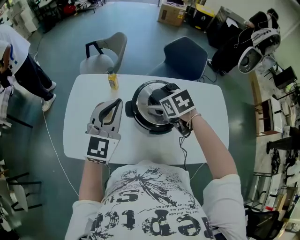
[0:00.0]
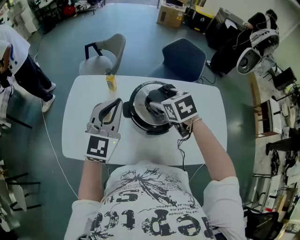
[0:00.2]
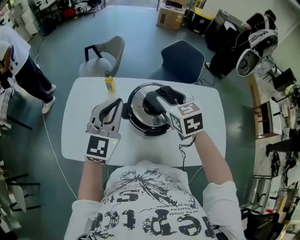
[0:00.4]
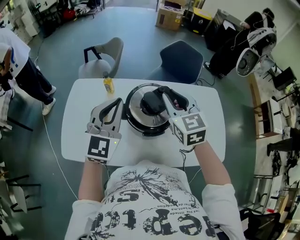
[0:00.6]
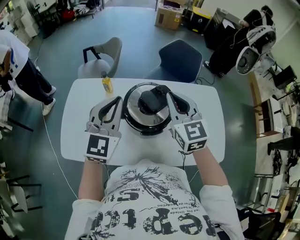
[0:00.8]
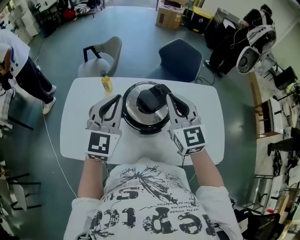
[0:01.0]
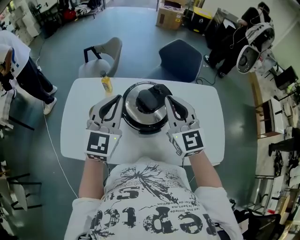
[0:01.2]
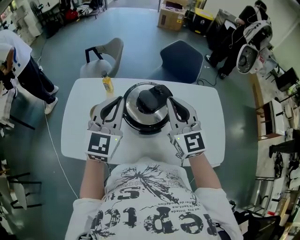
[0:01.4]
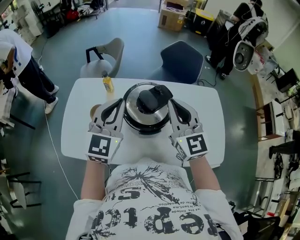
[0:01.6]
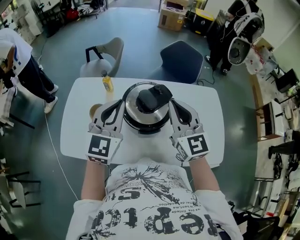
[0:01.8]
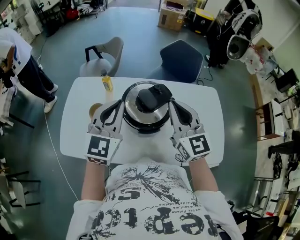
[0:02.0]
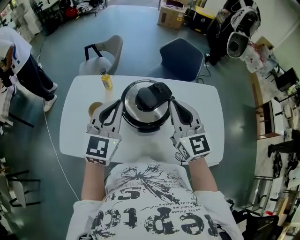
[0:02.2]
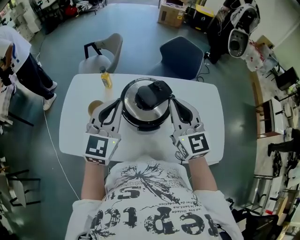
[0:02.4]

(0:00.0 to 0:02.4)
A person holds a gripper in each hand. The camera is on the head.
0:00.0 - 0:01.2: The right gripper goes some 15 cm upward, to the right and backward, tilts its fingers roughly 60 degrees upward, and closes, while the left gripper shifts approximately 5 cm to the right.
0:01.2 - 0:02.4: The grippers make only small movements.

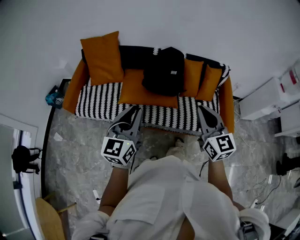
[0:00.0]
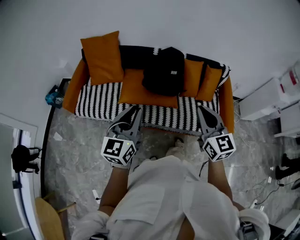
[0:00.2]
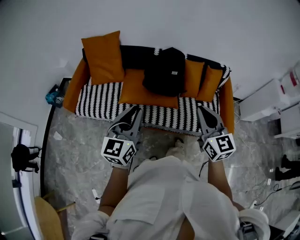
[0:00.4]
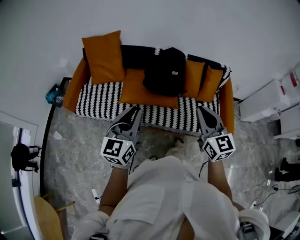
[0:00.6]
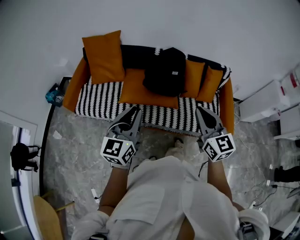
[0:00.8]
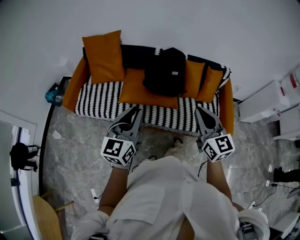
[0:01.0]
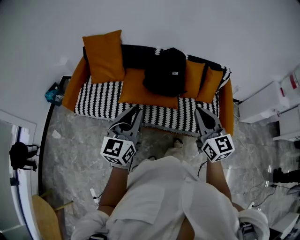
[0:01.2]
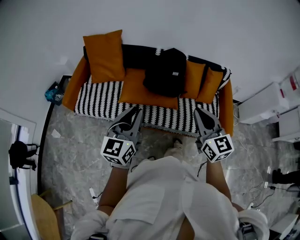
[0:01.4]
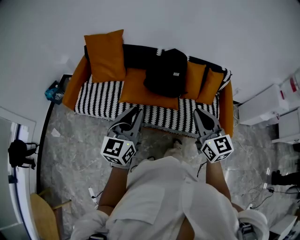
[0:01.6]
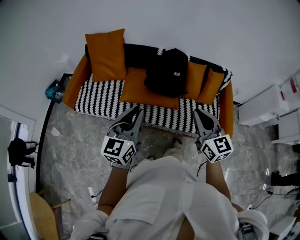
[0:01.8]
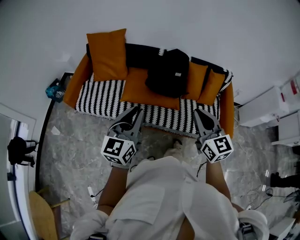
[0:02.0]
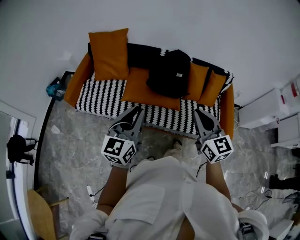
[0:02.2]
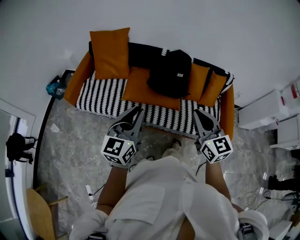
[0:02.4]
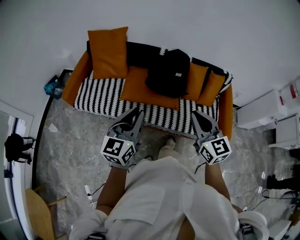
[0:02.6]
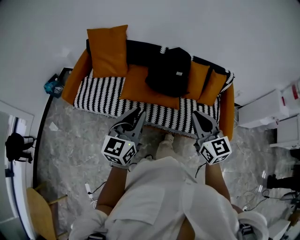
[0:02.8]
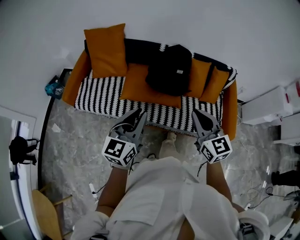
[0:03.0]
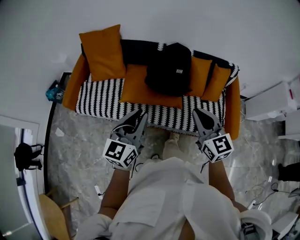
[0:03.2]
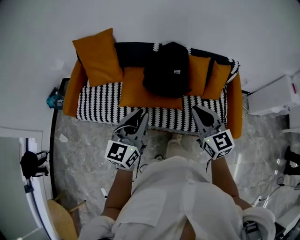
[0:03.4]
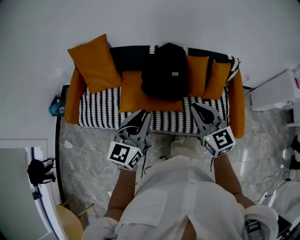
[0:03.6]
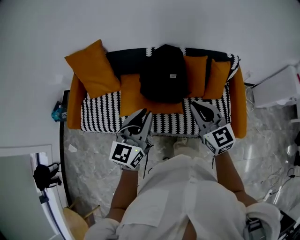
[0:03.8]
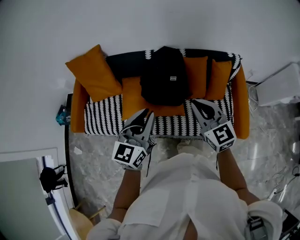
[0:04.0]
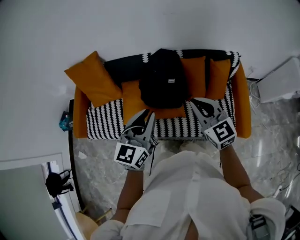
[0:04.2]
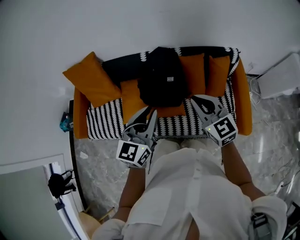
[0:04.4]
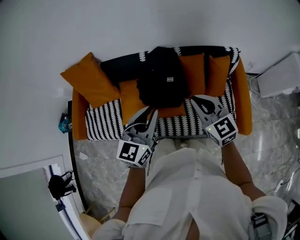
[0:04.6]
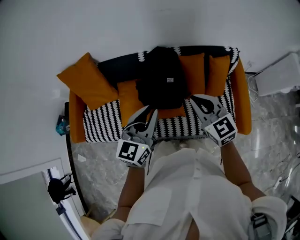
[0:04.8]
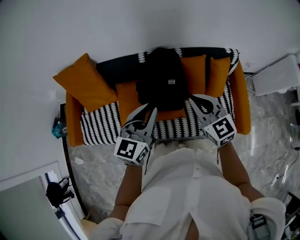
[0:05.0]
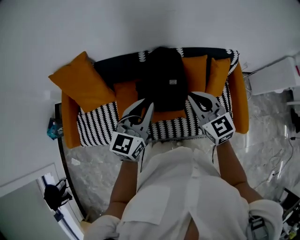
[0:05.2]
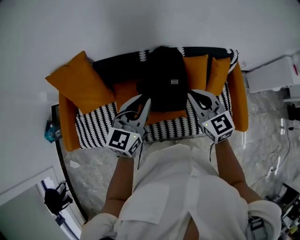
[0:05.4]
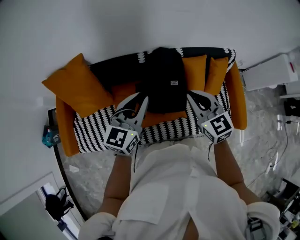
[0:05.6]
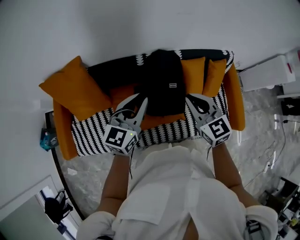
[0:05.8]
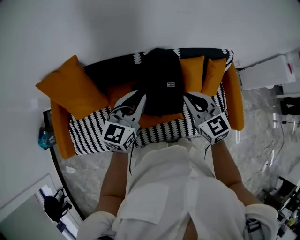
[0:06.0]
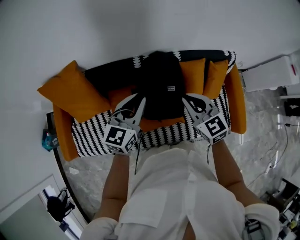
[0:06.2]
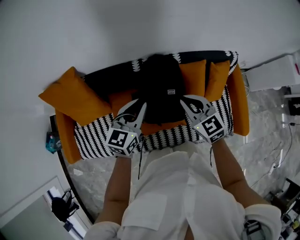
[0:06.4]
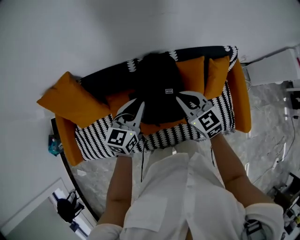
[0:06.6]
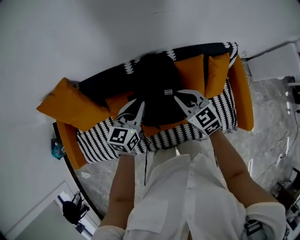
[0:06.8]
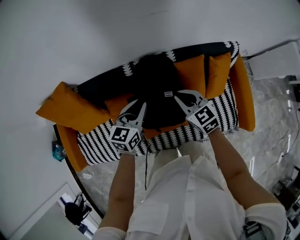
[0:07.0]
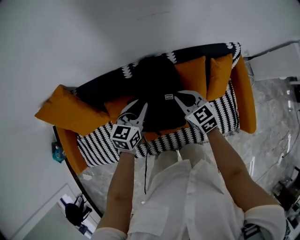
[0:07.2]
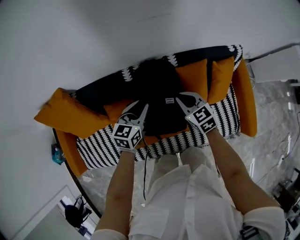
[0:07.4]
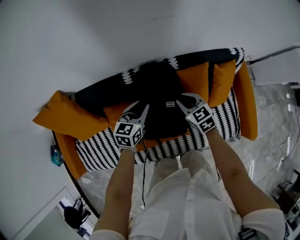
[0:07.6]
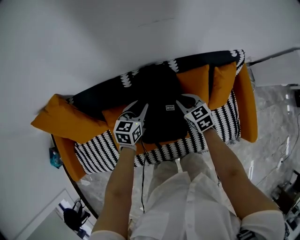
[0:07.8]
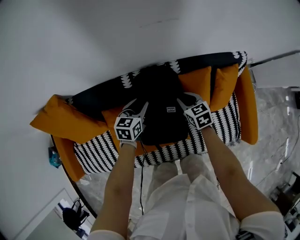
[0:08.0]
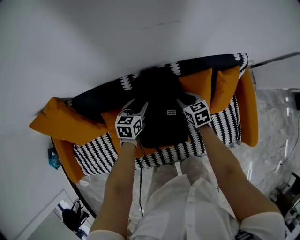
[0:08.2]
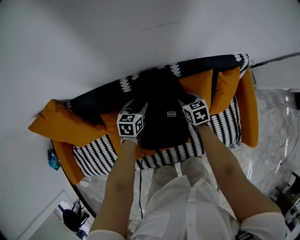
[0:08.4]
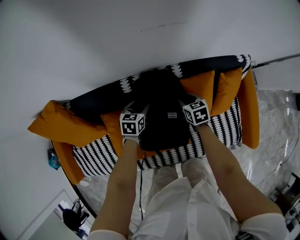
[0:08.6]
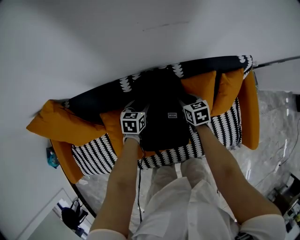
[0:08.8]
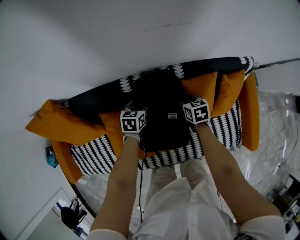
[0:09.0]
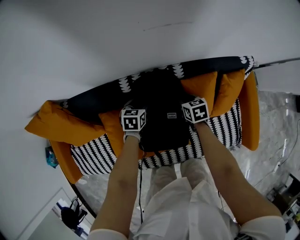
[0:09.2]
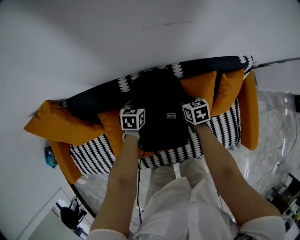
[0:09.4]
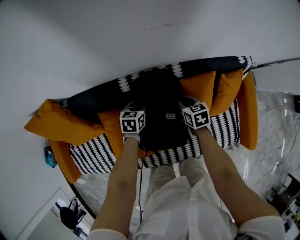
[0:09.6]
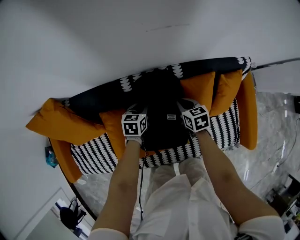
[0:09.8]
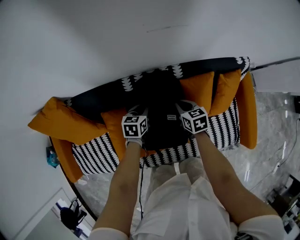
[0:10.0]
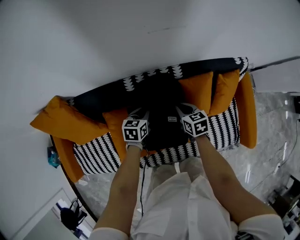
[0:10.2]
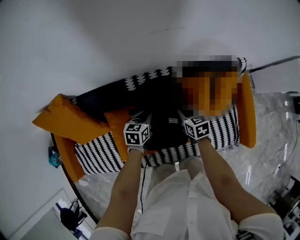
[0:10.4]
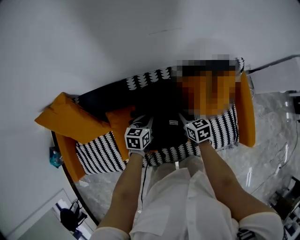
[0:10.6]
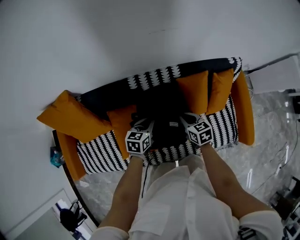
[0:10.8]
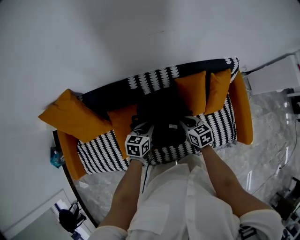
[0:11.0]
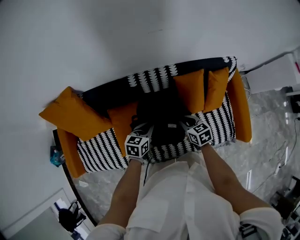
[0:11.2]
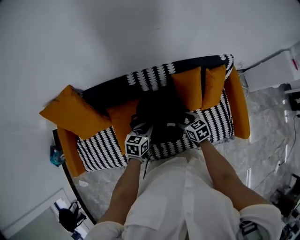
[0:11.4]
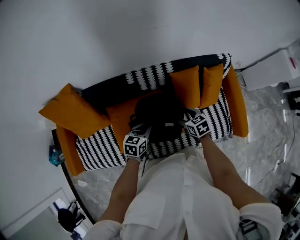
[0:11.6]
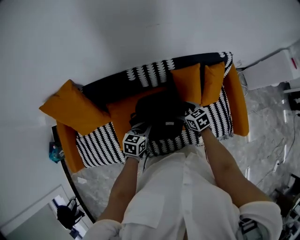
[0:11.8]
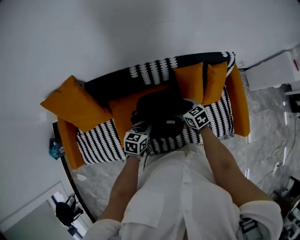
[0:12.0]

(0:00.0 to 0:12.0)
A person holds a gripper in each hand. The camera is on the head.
0:00.0 - 0:01.6: There are only small adjustments of the grippers.
0:01.6 - 0:03.0: The grippers move only a little.
0:03.0 - 0:04.4: Both grippers move forward and to the right, about 25 cm.
0:04.4 - 0:06.0: The right gripper moves to the left and forward, roughly 15 cm, while the left gripper goes roughly 20 cm forward and to the left.
0:06.0 - 0:07.6: Both grippers travel together downward and forward, roughly 25 cm. The left gripper changes its angle by about 20 degrees.
0:07.6 - 0:09.0: Both grippers move downward and forward, some 15 cm. The right gripper changes its angle by roughly 30 degrees. The left gripper opens its fingers.
0:09.0 - 0:10.4: Both grippers move upward and backward, roughly 10 cm. The left gripper closes.
0:10.4 - 0:12.0: The left gripper goes some 15 cm backward and upward; the right gripper goes some 10 cm backward and upward, and opens.

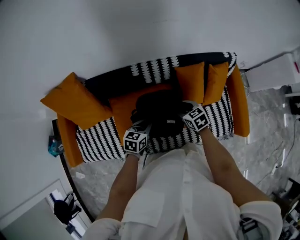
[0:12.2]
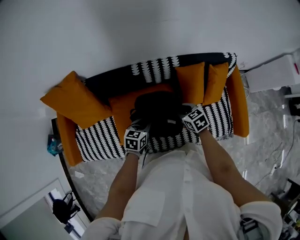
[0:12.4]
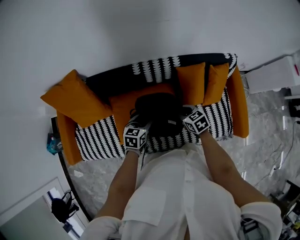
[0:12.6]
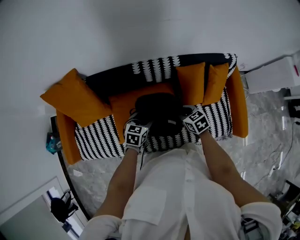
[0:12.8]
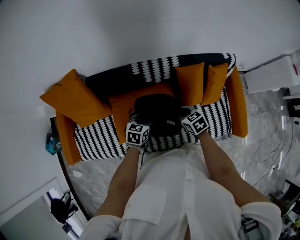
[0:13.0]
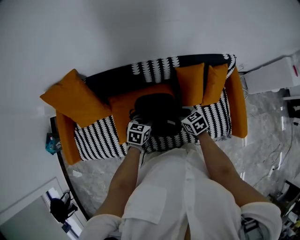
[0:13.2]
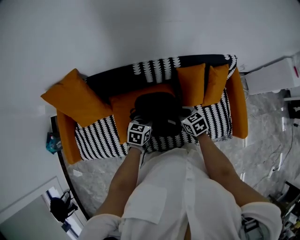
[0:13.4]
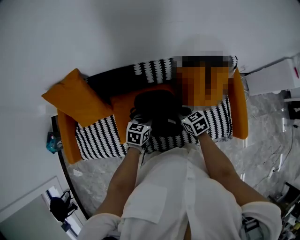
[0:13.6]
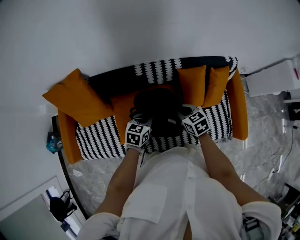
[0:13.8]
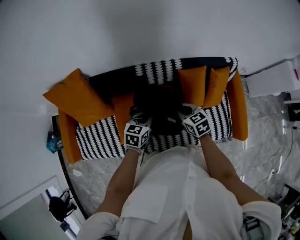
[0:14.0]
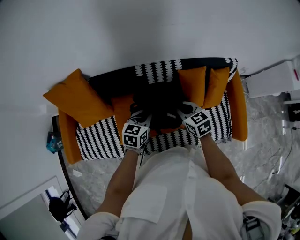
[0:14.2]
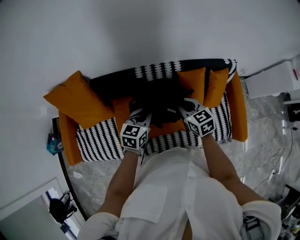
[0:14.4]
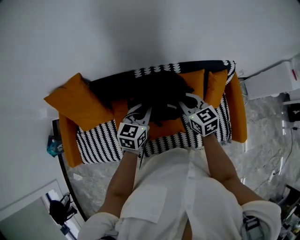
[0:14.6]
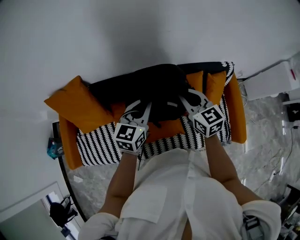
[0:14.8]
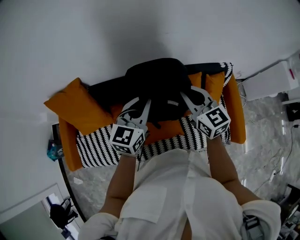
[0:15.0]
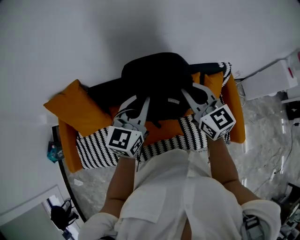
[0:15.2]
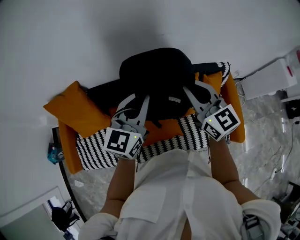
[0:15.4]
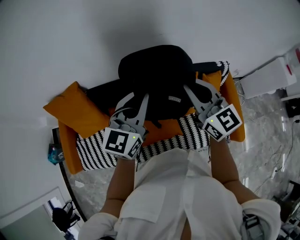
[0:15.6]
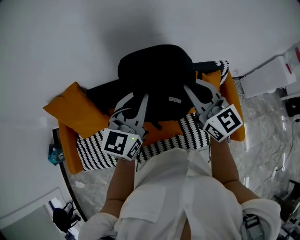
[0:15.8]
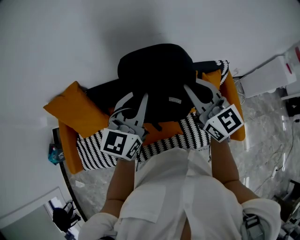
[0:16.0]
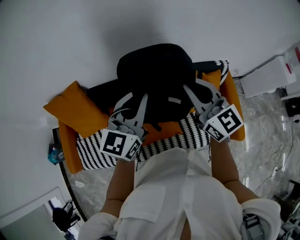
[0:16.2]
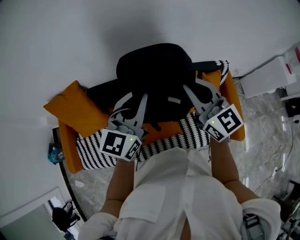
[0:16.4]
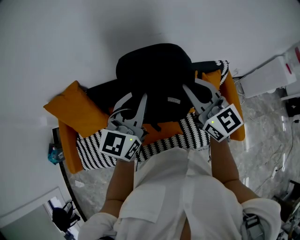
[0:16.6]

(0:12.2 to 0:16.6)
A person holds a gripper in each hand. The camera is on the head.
0:12.2 - 0:13.6: The left gripper opens and closes again; the right gripper closes.
0:13.6 - 0:15.2: The two grippers go roughly 30 cm upward. The right gripper angles its fingers upward, by roughly 40 degrees; the left gripper points its fingers roughly 30 degrees further upward.
0:15.2 - 0:16.6: Both grippers travel together upward, about 5 cm.

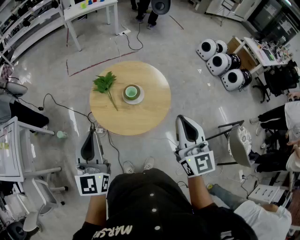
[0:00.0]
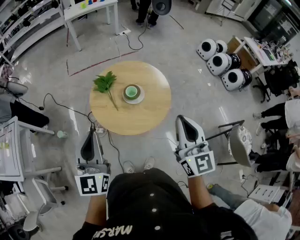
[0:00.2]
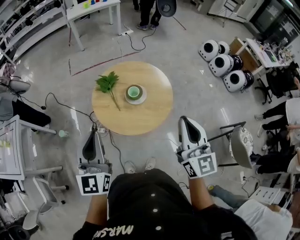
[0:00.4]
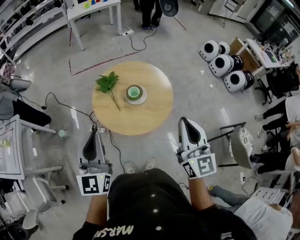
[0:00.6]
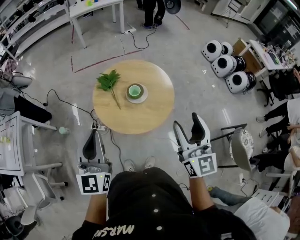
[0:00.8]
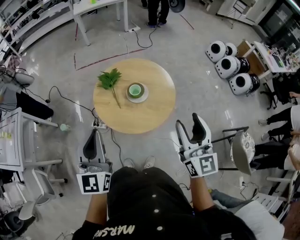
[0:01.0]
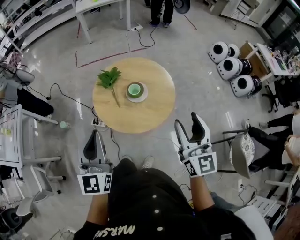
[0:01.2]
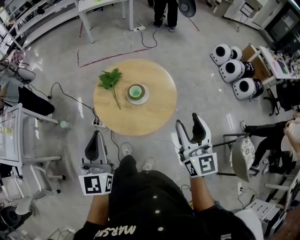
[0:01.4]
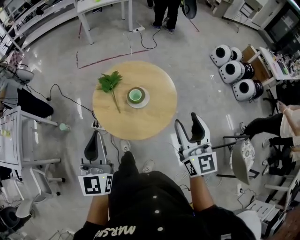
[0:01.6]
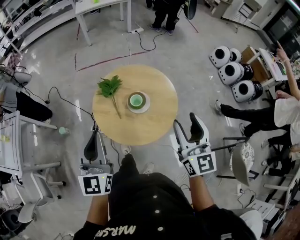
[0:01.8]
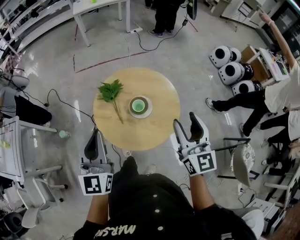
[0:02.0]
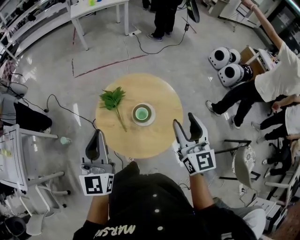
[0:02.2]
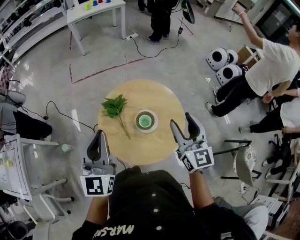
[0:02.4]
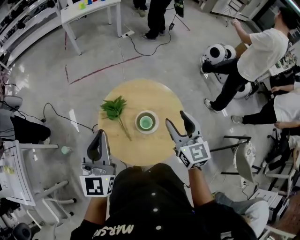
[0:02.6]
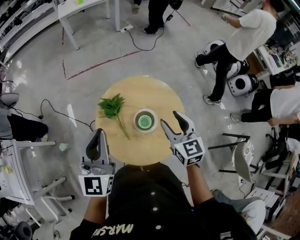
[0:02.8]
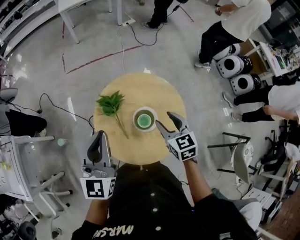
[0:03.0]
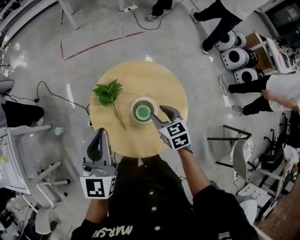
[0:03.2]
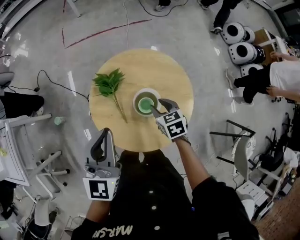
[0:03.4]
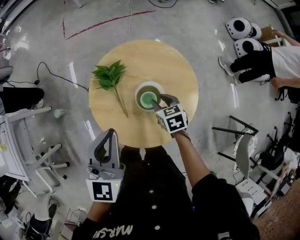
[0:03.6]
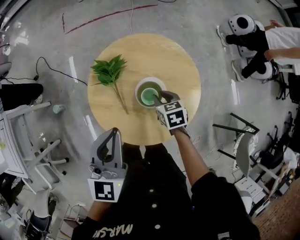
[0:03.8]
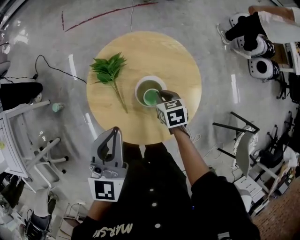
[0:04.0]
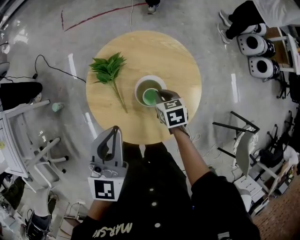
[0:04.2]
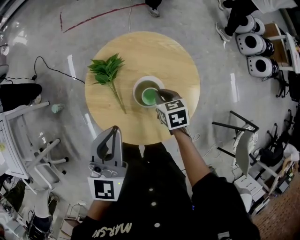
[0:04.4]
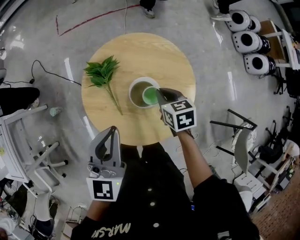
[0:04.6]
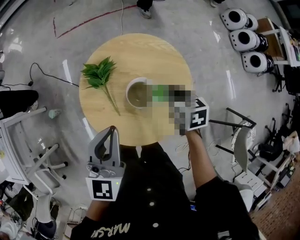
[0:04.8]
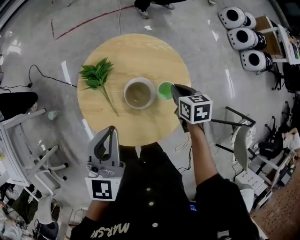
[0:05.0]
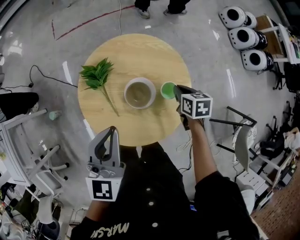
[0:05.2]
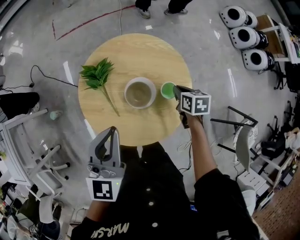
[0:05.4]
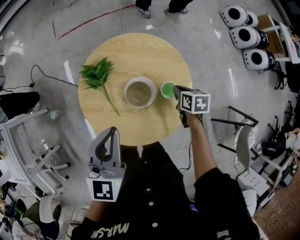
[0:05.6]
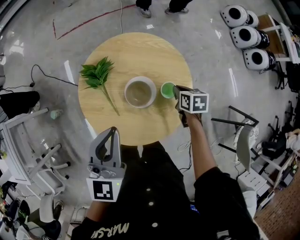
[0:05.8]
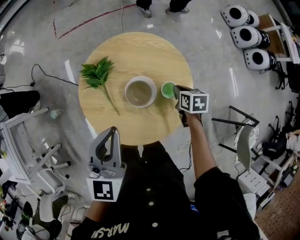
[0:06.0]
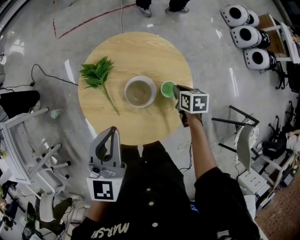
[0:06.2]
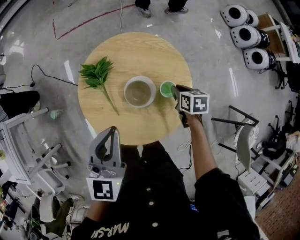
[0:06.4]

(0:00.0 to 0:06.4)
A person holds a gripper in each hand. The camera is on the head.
0:00.0 - 0:01.6: The left gripper changes place by roughly 5 cm, while the right gripper moves forward, some 5 cm, and opens.
0:01.6 - 0:03.2: The left gripper shifts roughly 25 cm forward. The right gripper is displaced forward, downward and to the left by approximately 35 cm, and tilts its fingers some 40 degrees downward.
0:03.2 - 0:04.8: The left gripper heads downward and to the right, covering some 10 cm; the right gripper shifts some 5 cm to the right, and closes up.
0:04.8 - 0:06.4: The right gripper goes some 10 cm downward and to the right.
